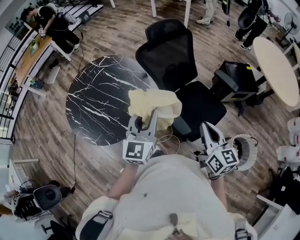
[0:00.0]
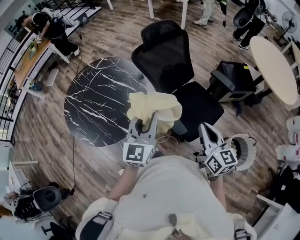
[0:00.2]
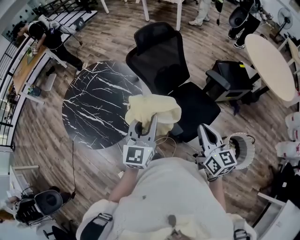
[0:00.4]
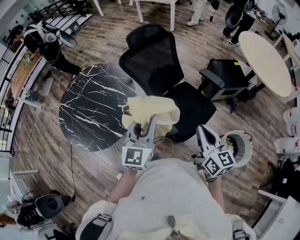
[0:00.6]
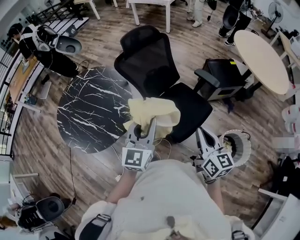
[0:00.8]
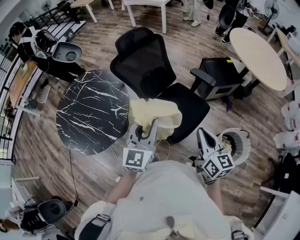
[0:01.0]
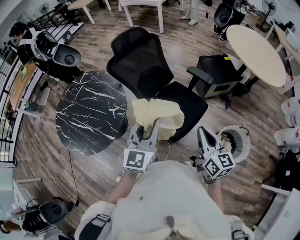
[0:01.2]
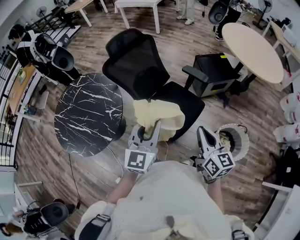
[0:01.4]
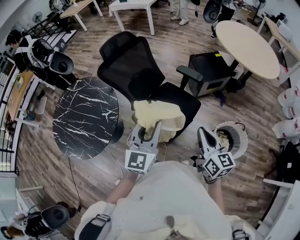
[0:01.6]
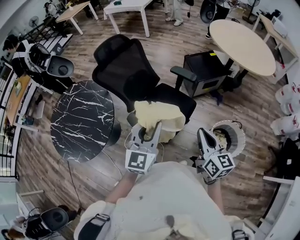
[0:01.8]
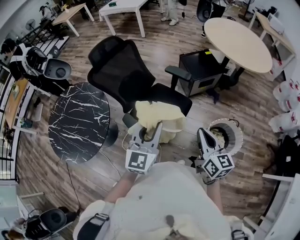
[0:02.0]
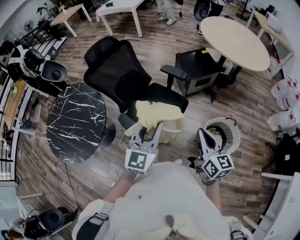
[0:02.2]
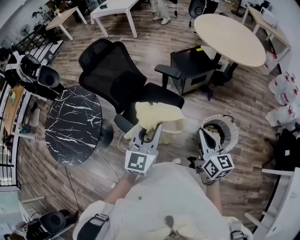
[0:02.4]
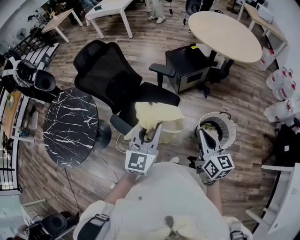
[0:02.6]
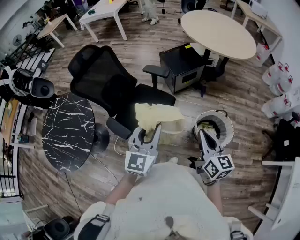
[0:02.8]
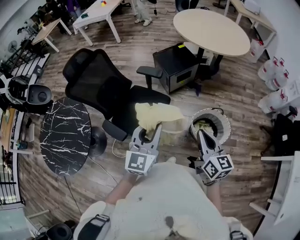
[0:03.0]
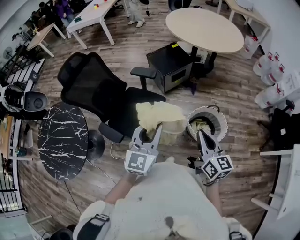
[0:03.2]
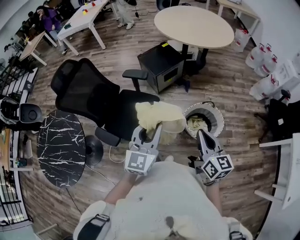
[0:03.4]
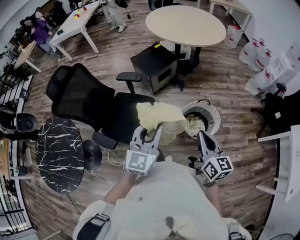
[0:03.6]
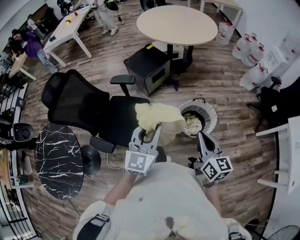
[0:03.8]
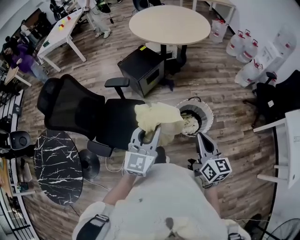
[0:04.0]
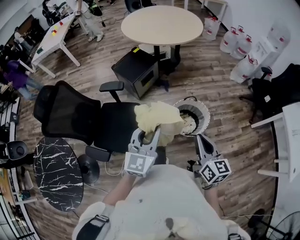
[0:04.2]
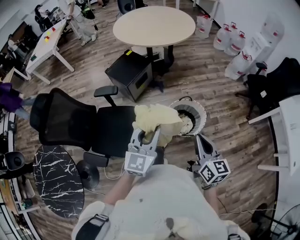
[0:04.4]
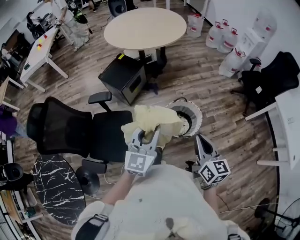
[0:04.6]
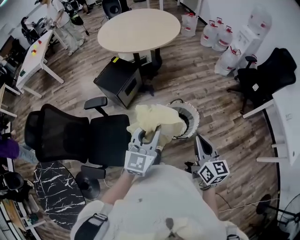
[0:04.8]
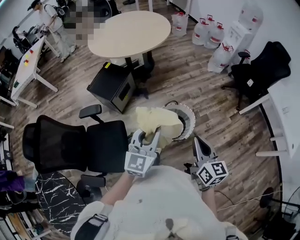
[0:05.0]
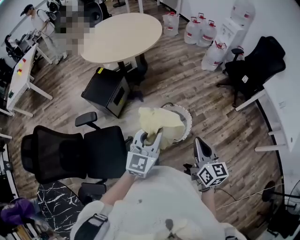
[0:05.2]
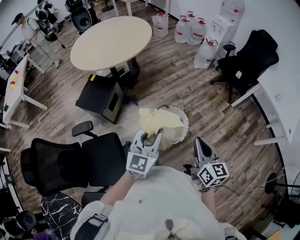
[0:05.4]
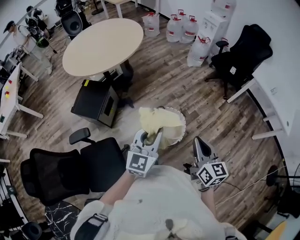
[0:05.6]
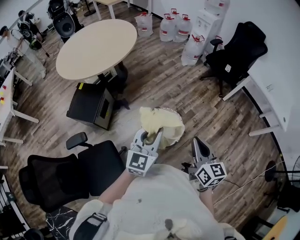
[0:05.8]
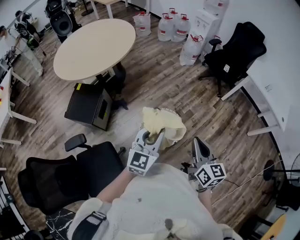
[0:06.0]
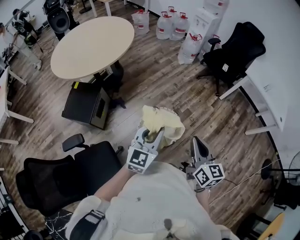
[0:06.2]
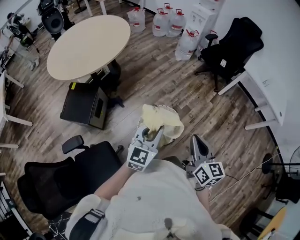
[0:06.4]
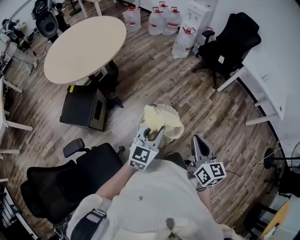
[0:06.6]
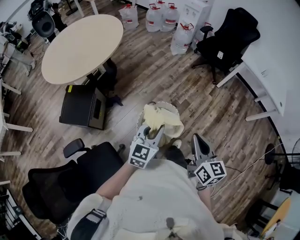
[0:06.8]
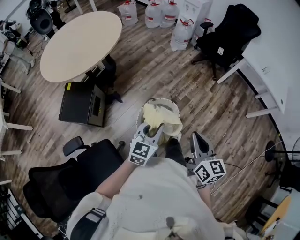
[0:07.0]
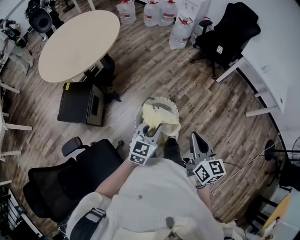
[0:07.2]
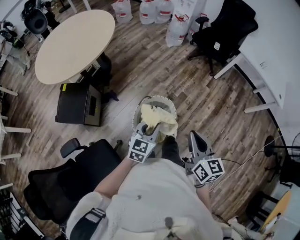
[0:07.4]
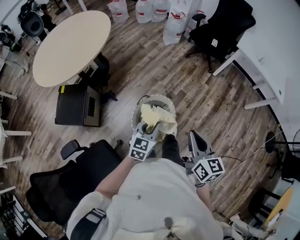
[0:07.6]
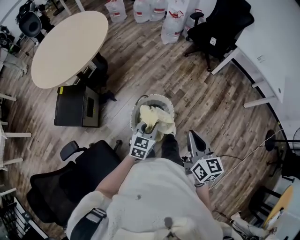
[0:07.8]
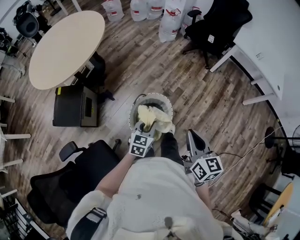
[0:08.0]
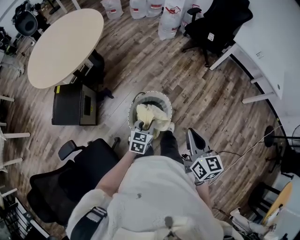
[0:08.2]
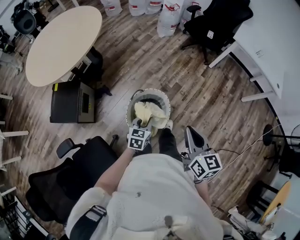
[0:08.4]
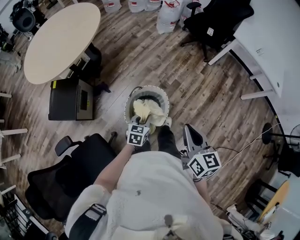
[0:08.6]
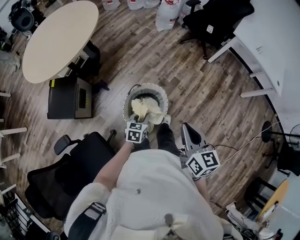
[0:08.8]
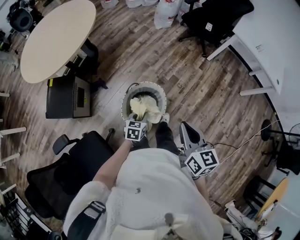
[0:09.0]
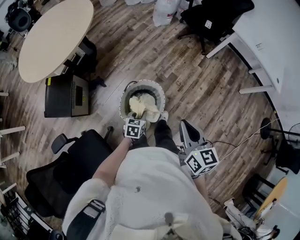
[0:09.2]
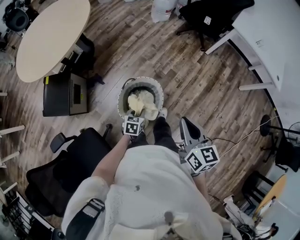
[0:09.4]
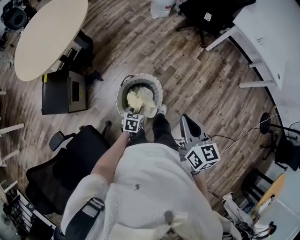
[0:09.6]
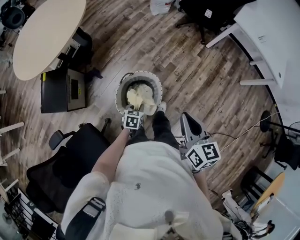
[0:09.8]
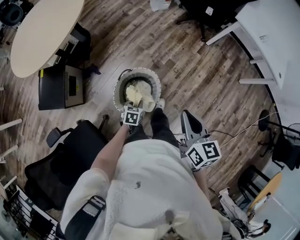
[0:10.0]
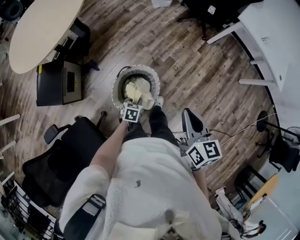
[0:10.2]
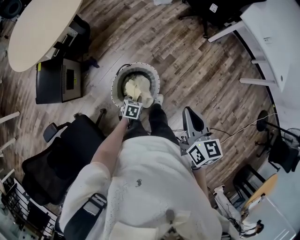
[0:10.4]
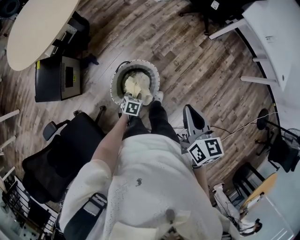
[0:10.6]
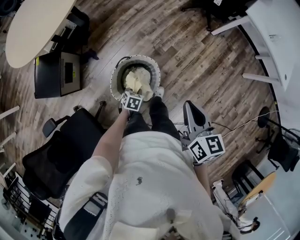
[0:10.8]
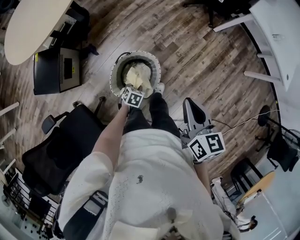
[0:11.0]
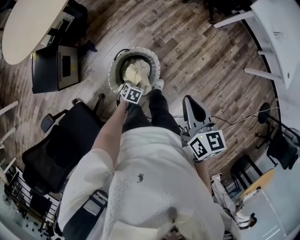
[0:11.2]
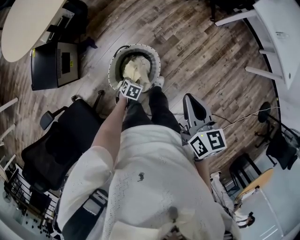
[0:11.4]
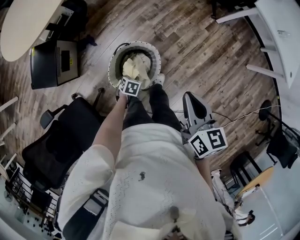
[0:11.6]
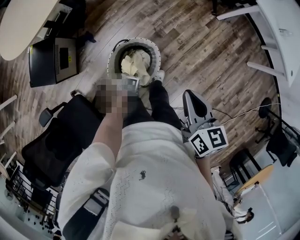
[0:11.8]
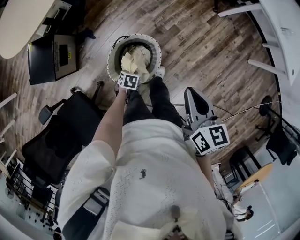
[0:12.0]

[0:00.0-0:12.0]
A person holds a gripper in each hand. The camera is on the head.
0:00.0 to 0:01.6: Both grippers move to the right, roughly 30 cm.
0:01.6 to 0:03.0: Both grippers travel together to the right, roughly 25 cm.
0:03.0 to 0:04.4: The right gripper shifts by about 15 cm, and changes its angle by some 30 degrees. Meanwhile the left gripper moves some 20 cm, and changes its angle by roughly 30 degrees.
0:04.4 to 0:06.0: The left gripper moves approximately 25 cm, and swivels some 30 degrees; the right gripper changes place by about 20 cm, and swivels some 30 degrees.
0:06.0 to 0:07.6: The right gripper shifts by some 5 cm. The left gripper travels downward and forward by about 20 cm, and rotates some 20 degrees.
0:07.6 to 0:09.0: The right gripper changes place by about 5 cm, while the left gripper shifts some 15 cm downward, and swivels roughly 20 degrees.
0:09.0 to 0:10.4: The left gripper moves downward and forward, about 15 cm; the right gripper goes approximately 10 cm forward and to the right.
0:10.4 to 0:12.0: The right gripper is displaced downward by about 5 cm. The left gripper moves downward, about 10 cm.

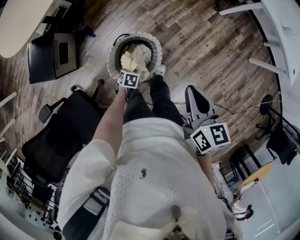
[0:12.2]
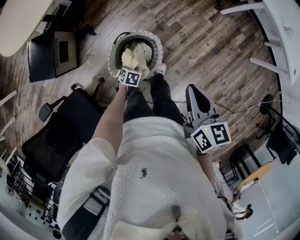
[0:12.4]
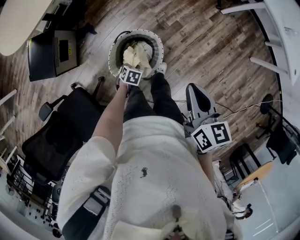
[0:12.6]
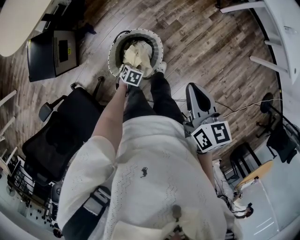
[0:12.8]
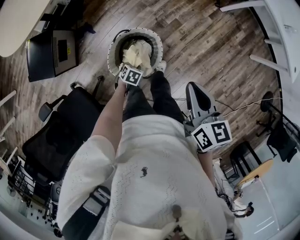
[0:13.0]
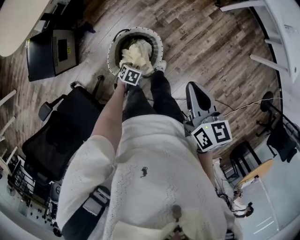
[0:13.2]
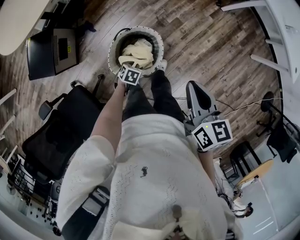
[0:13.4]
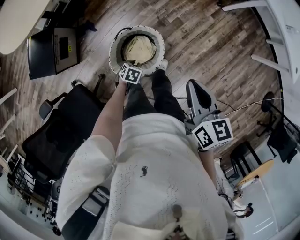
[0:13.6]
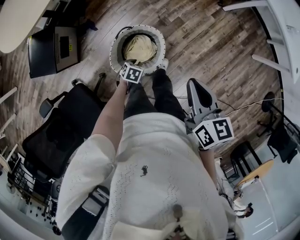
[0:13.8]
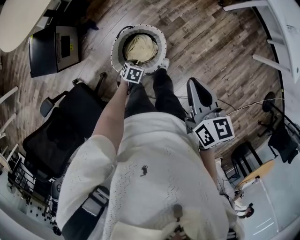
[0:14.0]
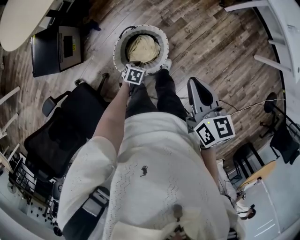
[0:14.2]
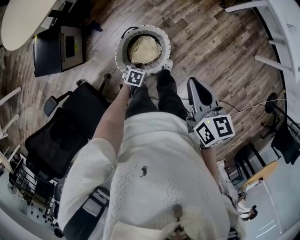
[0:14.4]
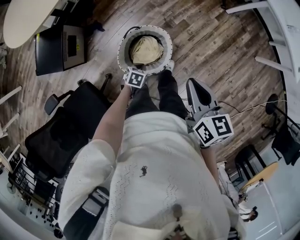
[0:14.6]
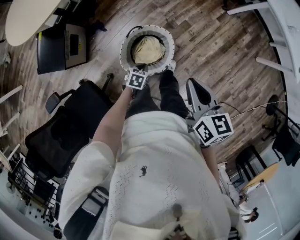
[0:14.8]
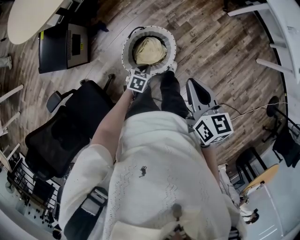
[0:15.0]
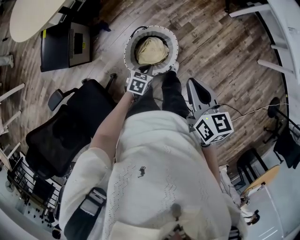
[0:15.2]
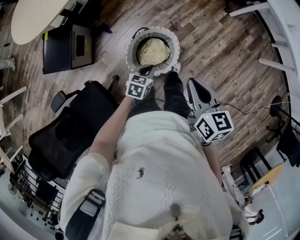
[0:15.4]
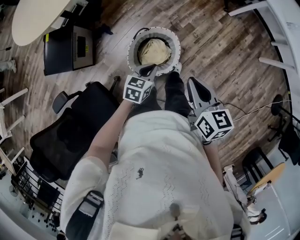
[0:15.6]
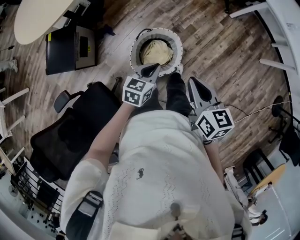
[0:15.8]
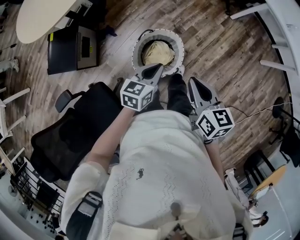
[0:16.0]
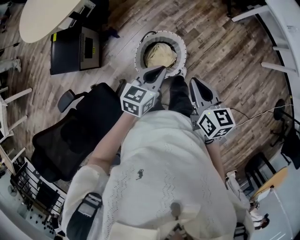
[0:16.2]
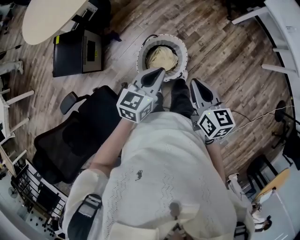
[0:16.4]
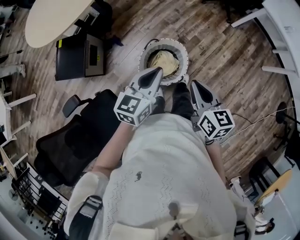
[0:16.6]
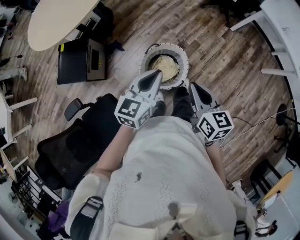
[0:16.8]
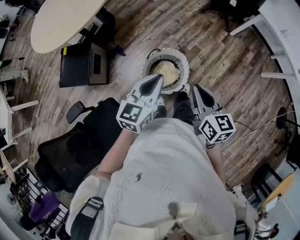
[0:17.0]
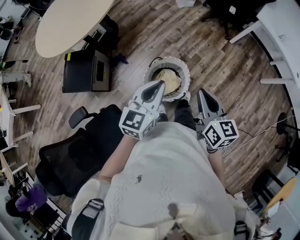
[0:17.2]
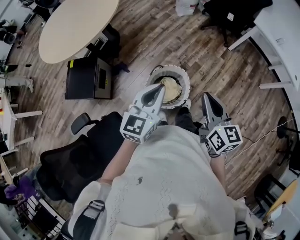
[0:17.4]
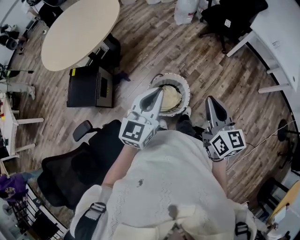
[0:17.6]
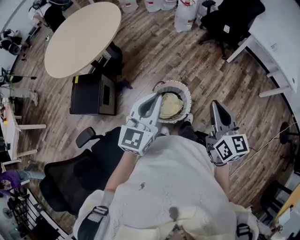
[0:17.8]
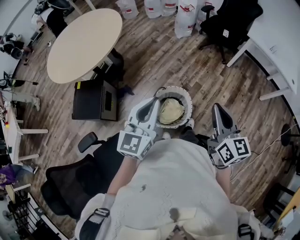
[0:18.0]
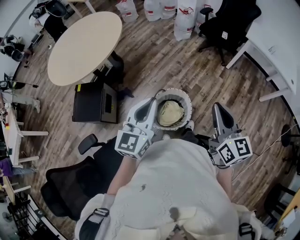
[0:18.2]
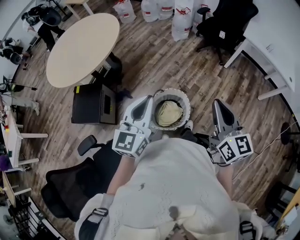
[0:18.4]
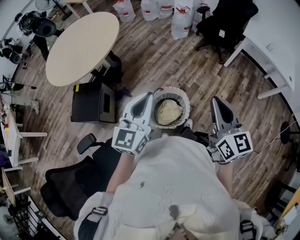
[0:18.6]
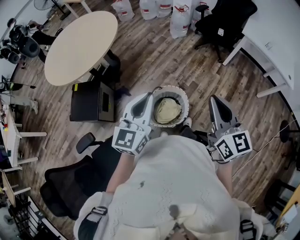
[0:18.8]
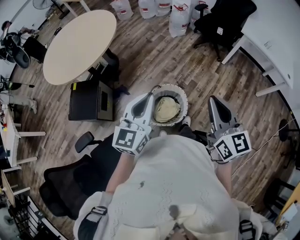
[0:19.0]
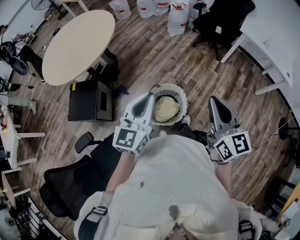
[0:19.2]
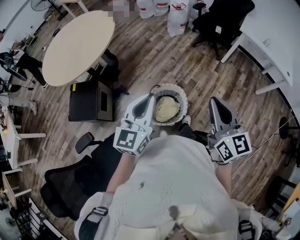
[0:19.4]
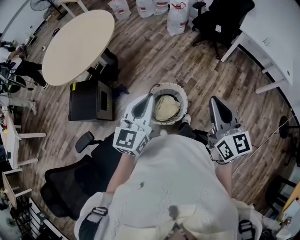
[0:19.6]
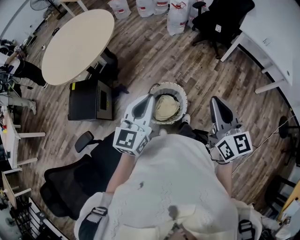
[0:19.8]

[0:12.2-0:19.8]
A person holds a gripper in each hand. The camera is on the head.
0:12.2 to 0:13.8: The grippers move only a little.
0:13.8 to 0:15.2: The right gripper shifts about 10 cm backward and to the left, while the left gripper moves upward and backward, some 15 cm.
0:15.2 to 0:16.8: The left gripper travels upward by roughly 30 cm, and angles its fingers upward, by roughly 40 degrees, while the right gripper travels to the left and backward by about 10 cm.
0:16.8 to 0:18.2: Both grippers move upward, some 15 cm. The right gripper swivels some 20 degrees.
0:18.2 to 0:19.8: The grippers make only small movements.

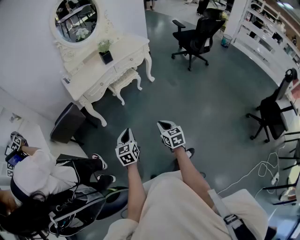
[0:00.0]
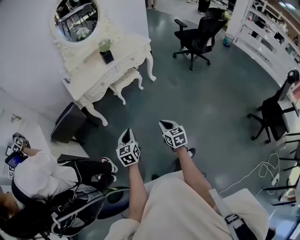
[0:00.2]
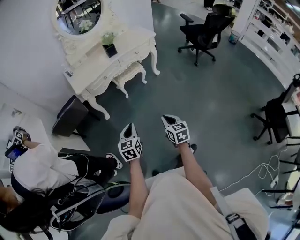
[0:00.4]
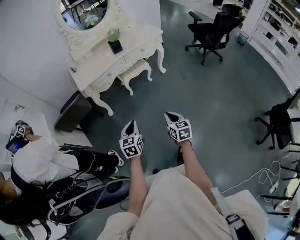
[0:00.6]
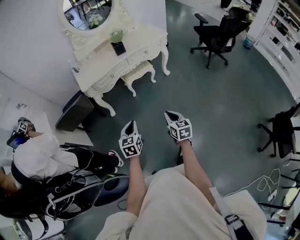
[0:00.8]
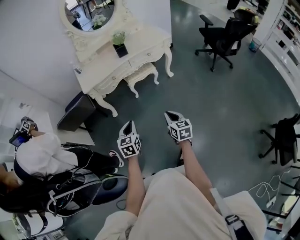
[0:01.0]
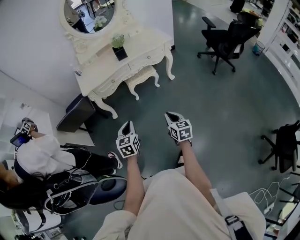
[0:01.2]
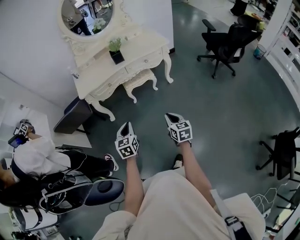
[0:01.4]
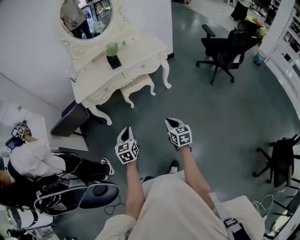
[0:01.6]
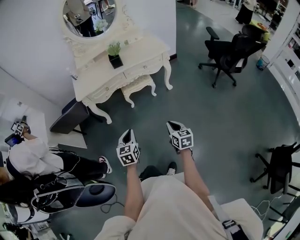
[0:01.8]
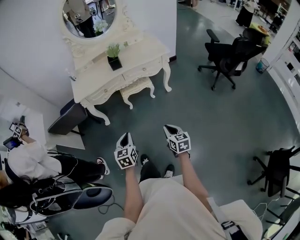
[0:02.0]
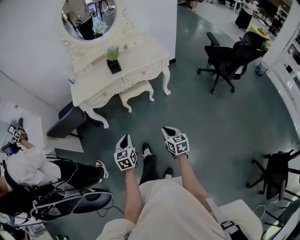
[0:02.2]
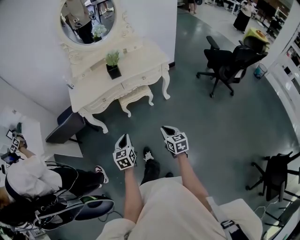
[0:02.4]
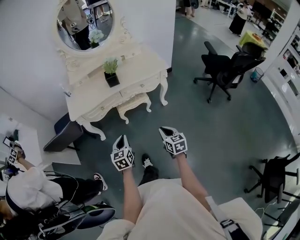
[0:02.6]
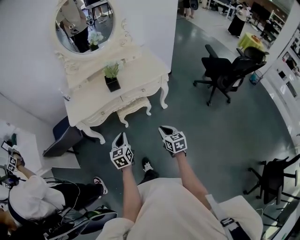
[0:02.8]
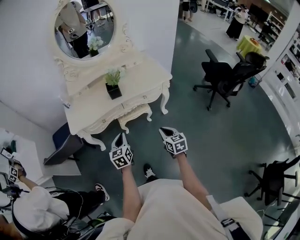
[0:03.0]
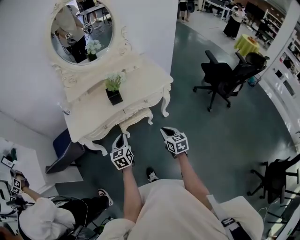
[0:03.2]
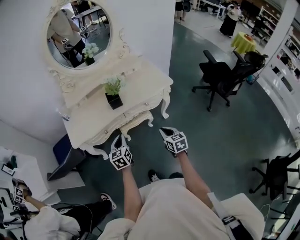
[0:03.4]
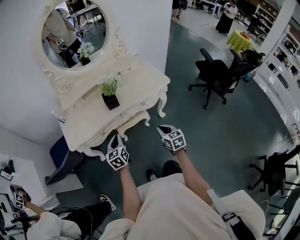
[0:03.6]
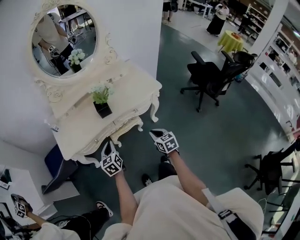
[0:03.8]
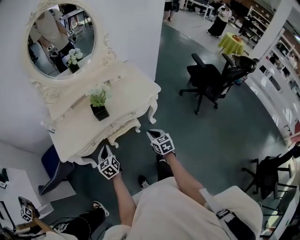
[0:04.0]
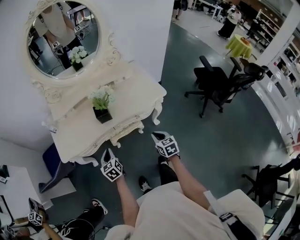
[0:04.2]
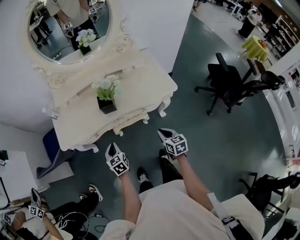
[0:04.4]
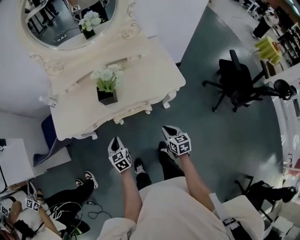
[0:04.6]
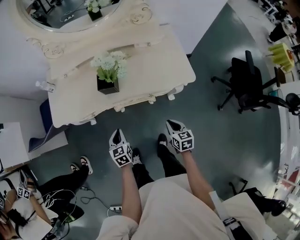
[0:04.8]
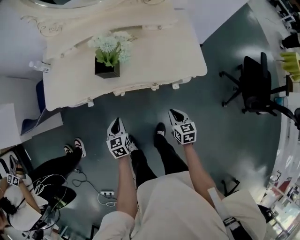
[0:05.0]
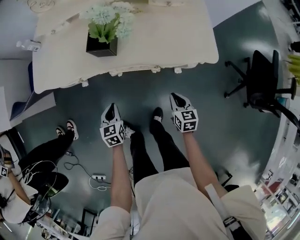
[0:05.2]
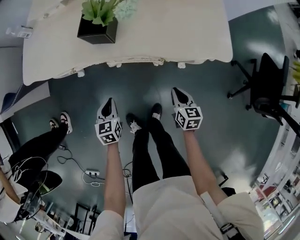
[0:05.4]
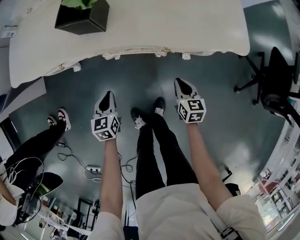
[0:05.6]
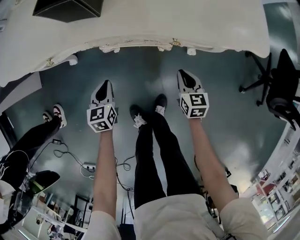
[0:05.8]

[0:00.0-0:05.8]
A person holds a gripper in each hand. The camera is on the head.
0:00.0 to 0:01.4: Both grippers move forward and to the right, some 20 cm.
0:01.4 to 0:02.8: The two grippers go roughly 20 cm forward.
0:02.8 to 0:04.4: Both grippers move forward, roughly 25 cm.
0:04.4 to 0:05.8: Both grippers travel together downward, roughly 35 cm.
